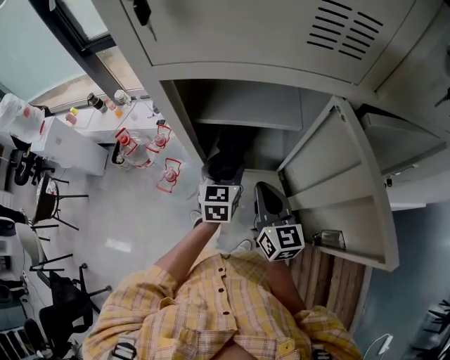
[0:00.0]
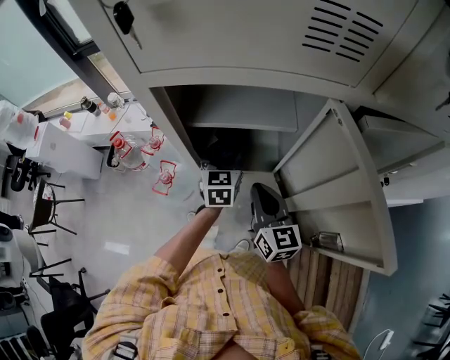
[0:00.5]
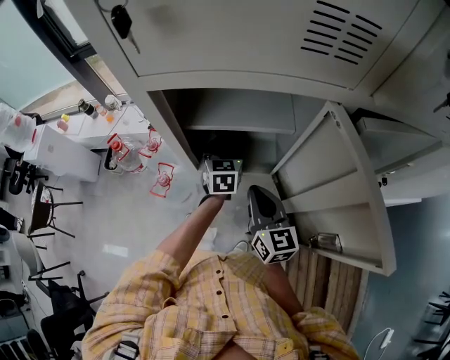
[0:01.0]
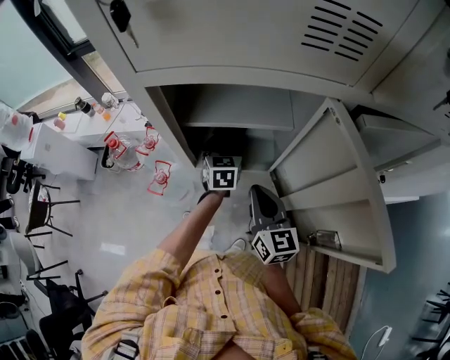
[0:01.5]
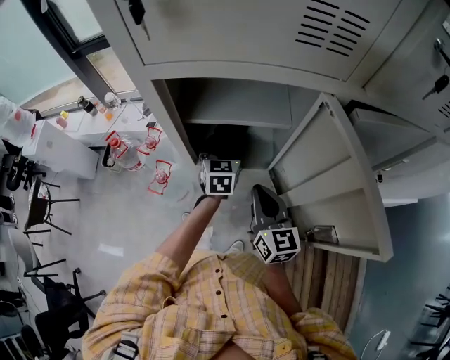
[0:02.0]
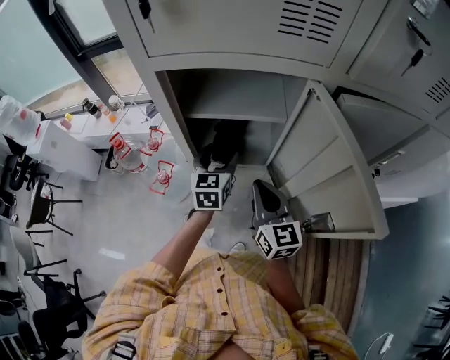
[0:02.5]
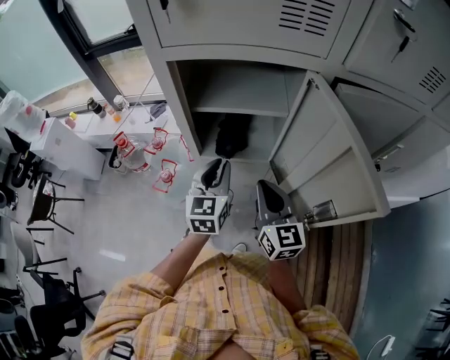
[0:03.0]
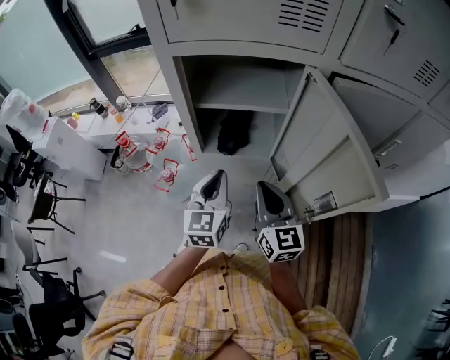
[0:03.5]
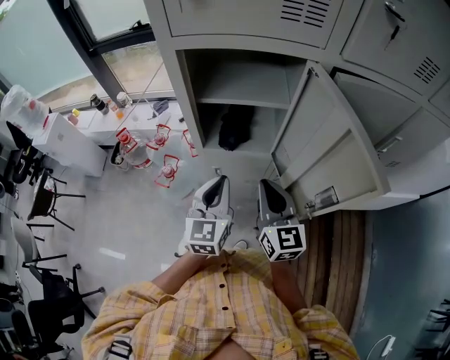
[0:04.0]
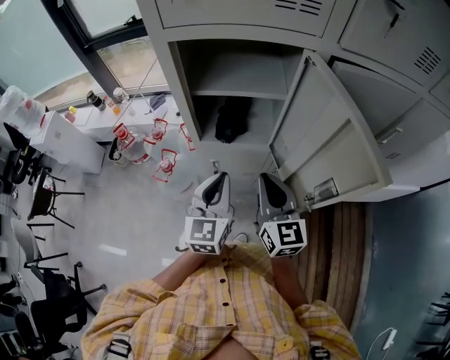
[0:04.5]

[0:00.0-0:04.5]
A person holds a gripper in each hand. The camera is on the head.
0:00.0 to 0:02.0: The left gripper travels forward by some 5 cm.
0:02.0 to 0:04.5: The right gripper heads backward, covering roughly 5 cm, while the left gripper shifts about 25 cm backward, and closes up.

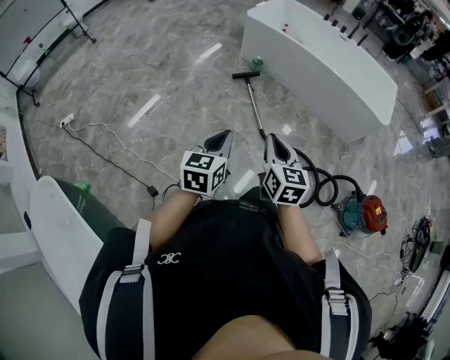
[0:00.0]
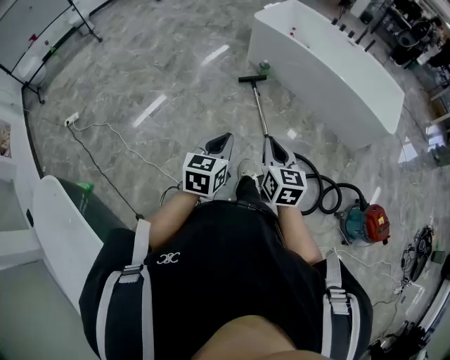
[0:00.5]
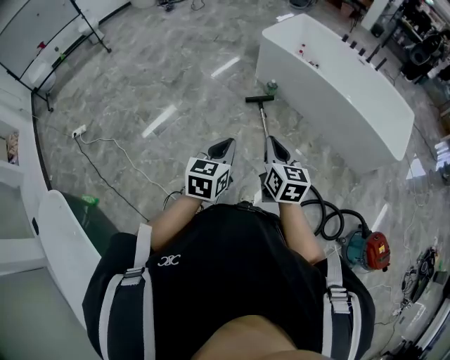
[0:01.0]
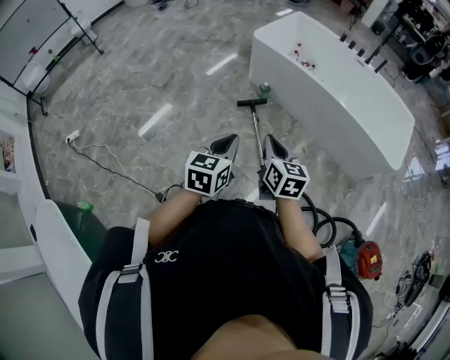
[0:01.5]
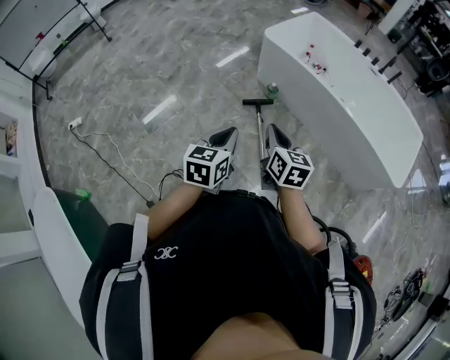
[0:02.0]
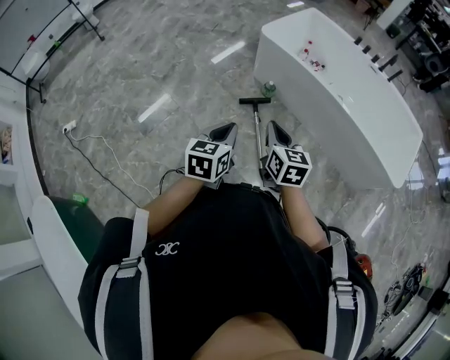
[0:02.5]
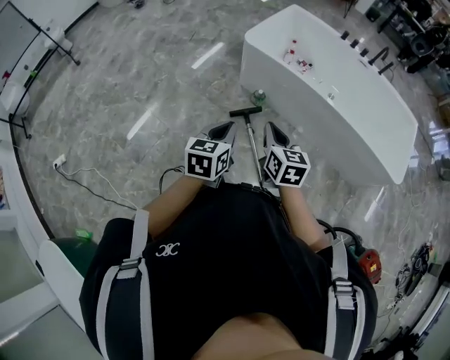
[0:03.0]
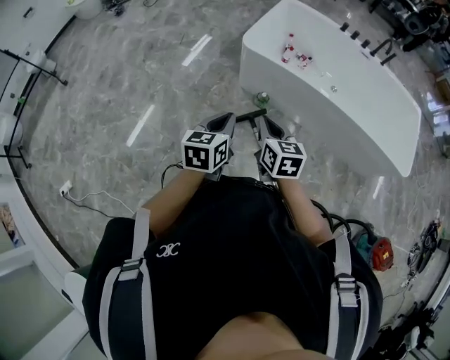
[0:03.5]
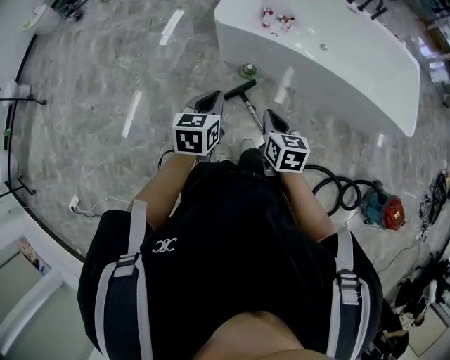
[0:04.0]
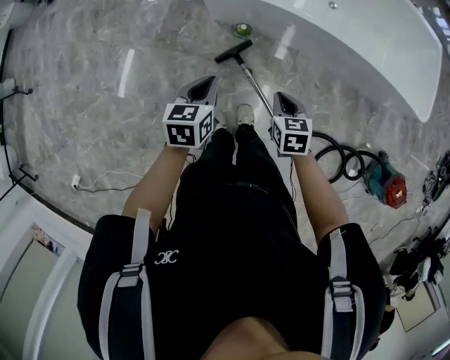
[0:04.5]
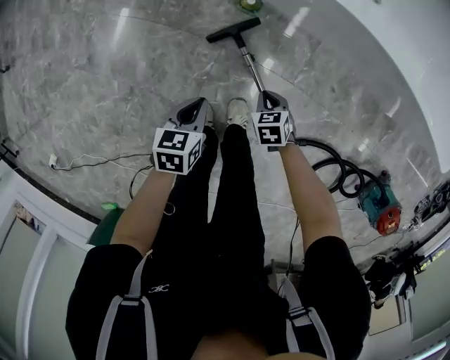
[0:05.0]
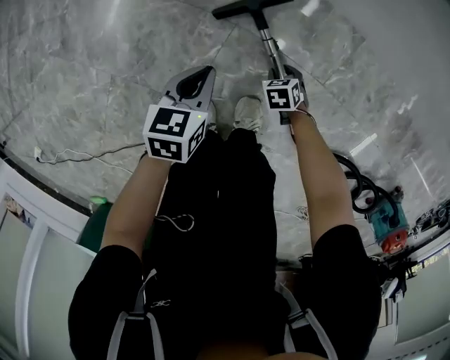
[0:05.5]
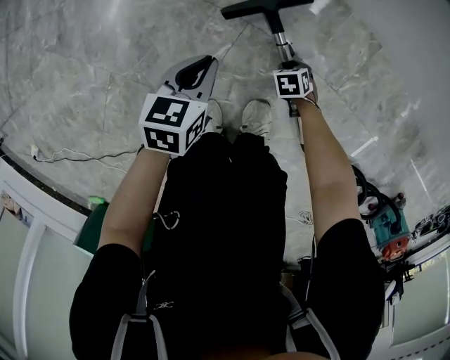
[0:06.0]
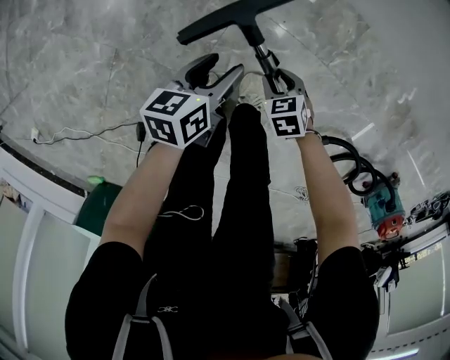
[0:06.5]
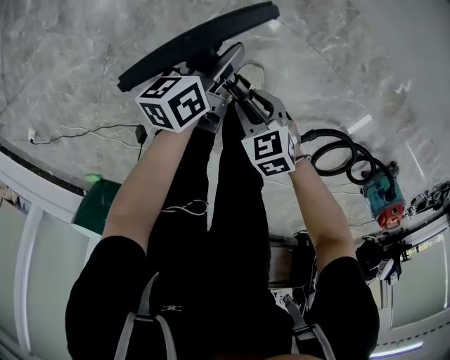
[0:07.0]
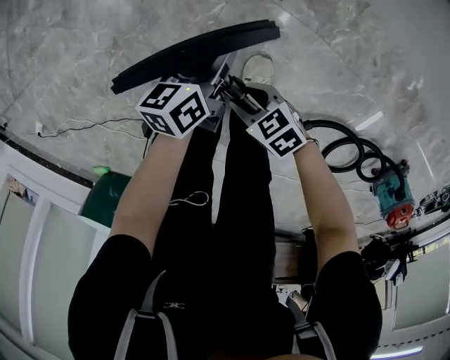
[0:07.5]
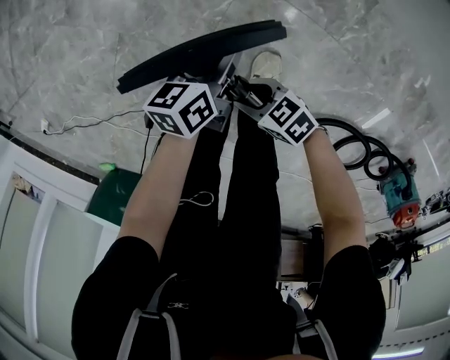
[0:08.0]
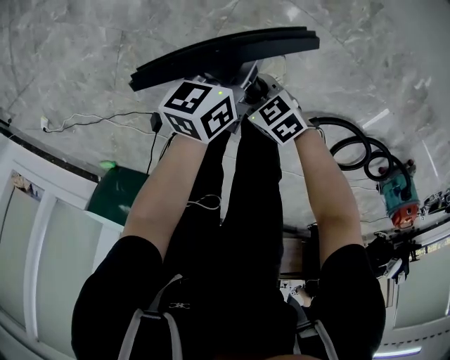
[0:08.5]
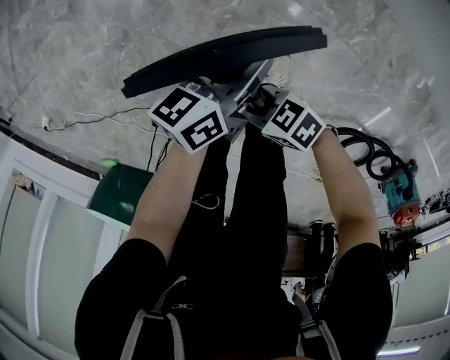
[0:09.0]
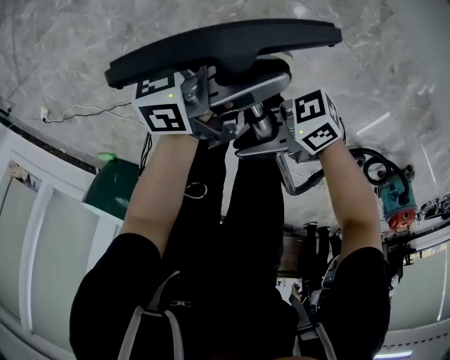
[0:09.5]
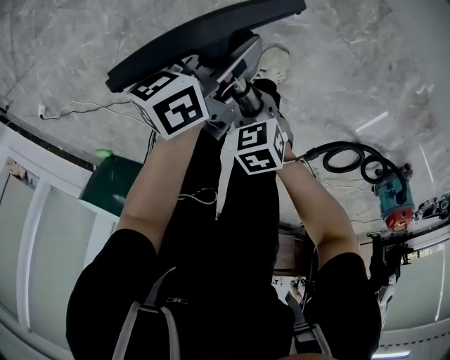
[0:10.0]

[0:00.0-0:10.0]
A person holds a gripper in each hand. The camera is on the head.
0:00.0 to 0:02.0: Both grippers travel together forward, some 35 cm.
0:02.0 to 0:04.0: The two grippers go some 40 cm forward. The left gripper swivels approximately 20 degrees. The right gripper changes its angle by about 30 degrees.
0:04.0 to 0:06.0: The two grippers go some 80 cm downward. The left gripper swivels some 20 degrees. Meanwhile the right gripper points its fingers approximately 50 degrees further downward, and opens up.
0:06.0 to 0:08.0: The right gripper travels upward by roughly 30 cm, and tips its fingers upward by some 50 degrees. Meanwhile the left gripper travels upward by about 10 cm, swivels some 30 degrees, and opens and closes again.
0:08.0 to 0:10.0: The right gripper goes upward and returns, roughly 15 cm each way, swivels roughly 30 degrees, and closes. The left gripper heads upward, covering roughly 5 cm.

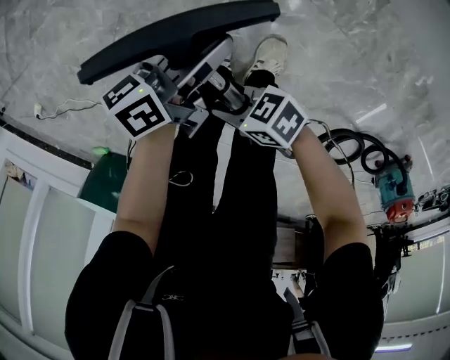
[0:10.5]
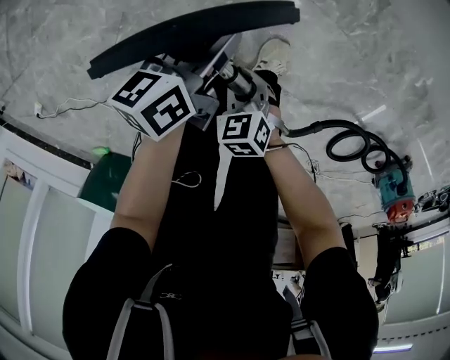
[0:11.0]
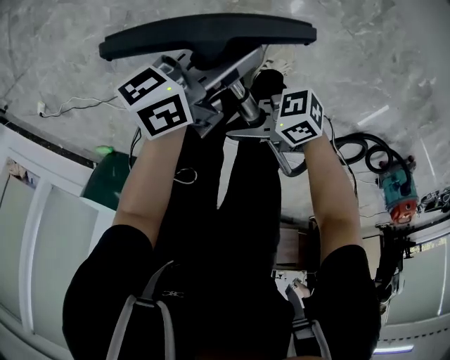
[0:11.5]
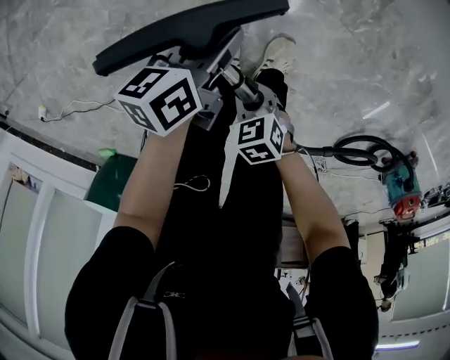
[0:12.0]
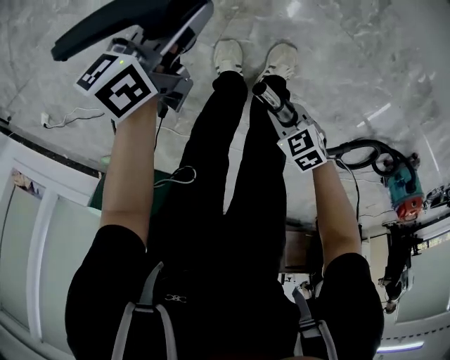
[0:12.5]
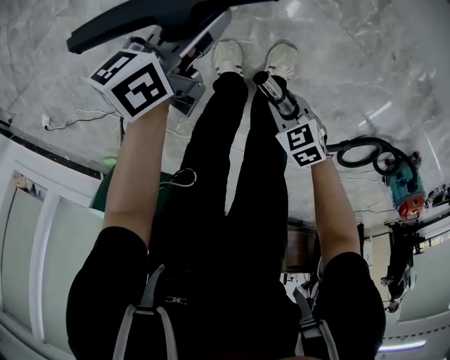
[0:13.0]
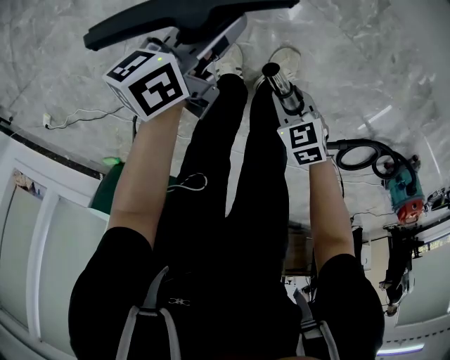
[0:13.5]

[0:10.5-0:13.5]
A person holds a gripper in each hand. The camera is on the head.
0:10.5 to 0:12.0: The right gripper moves up and down over roughly 10 cm, changing direction 2 times, and points its fingers approximately 40 degrees further downward.
0:12.0 to 0:13.5: The right gripper ends up roughly 10 cm from where it was.

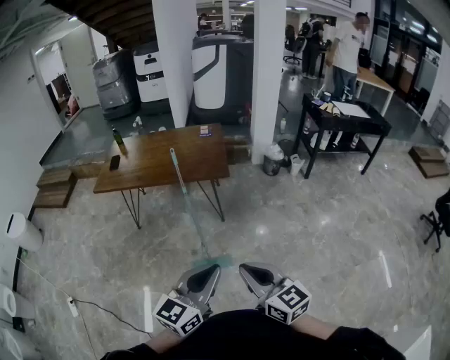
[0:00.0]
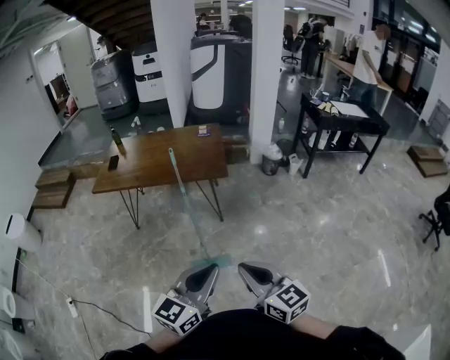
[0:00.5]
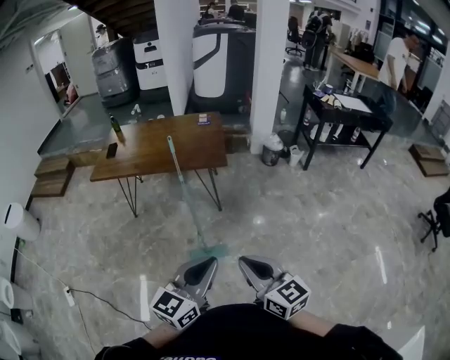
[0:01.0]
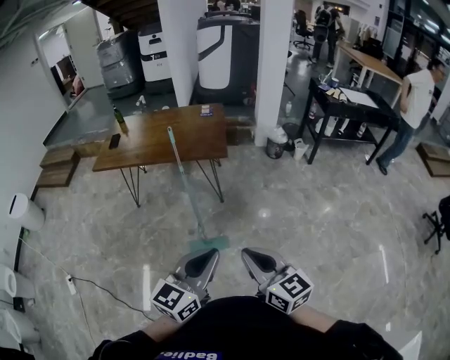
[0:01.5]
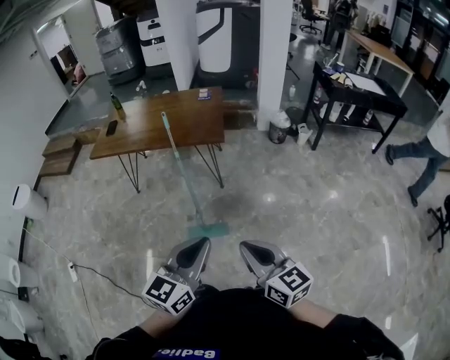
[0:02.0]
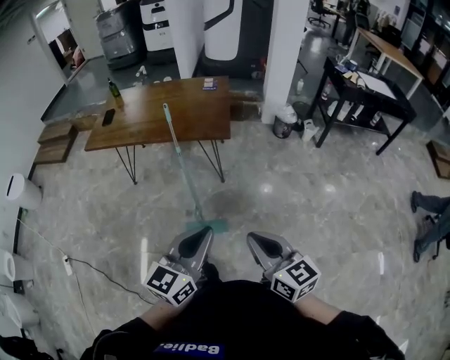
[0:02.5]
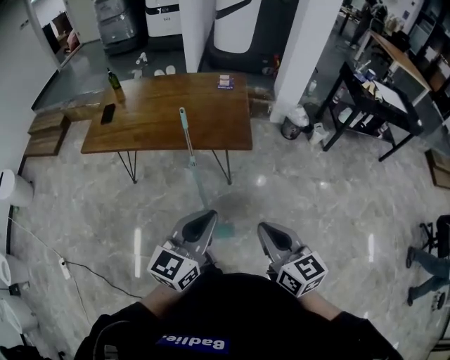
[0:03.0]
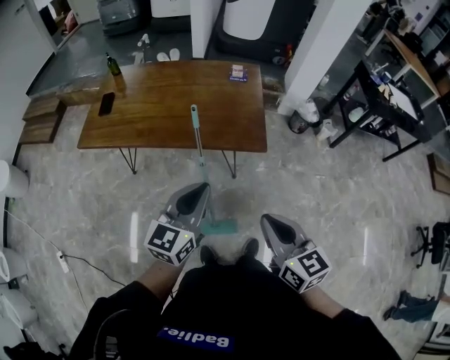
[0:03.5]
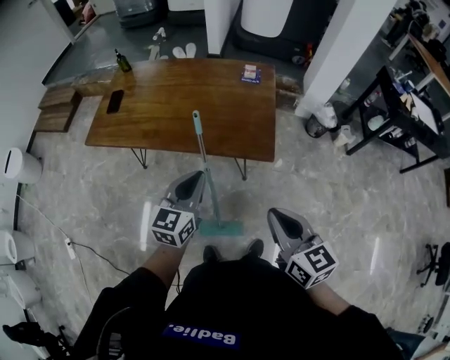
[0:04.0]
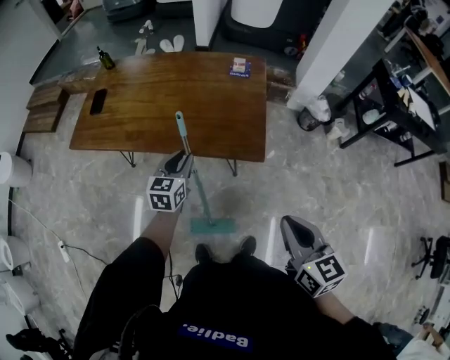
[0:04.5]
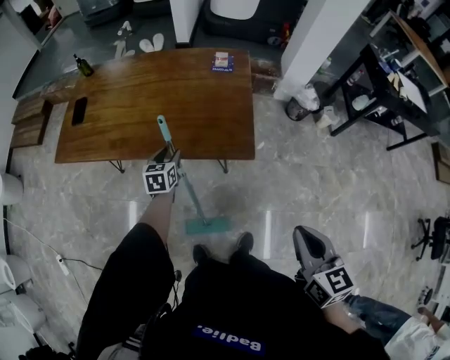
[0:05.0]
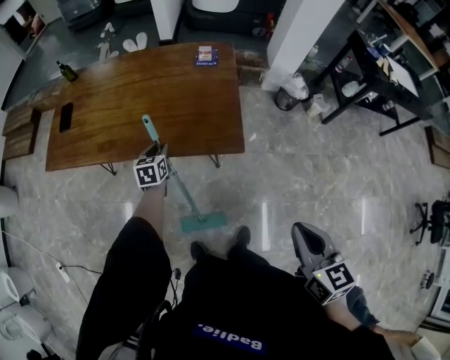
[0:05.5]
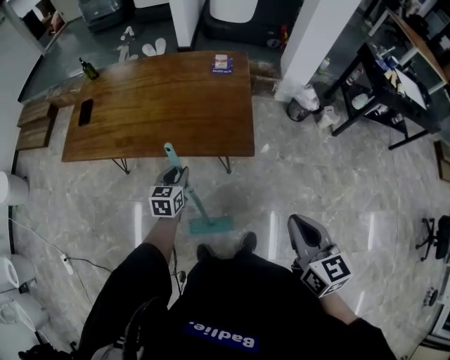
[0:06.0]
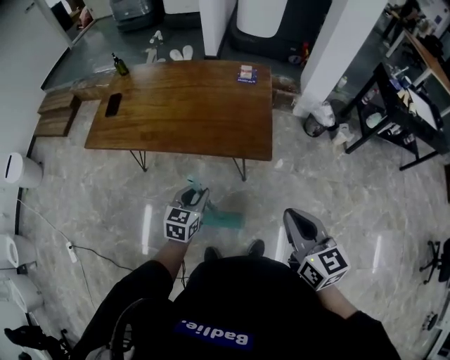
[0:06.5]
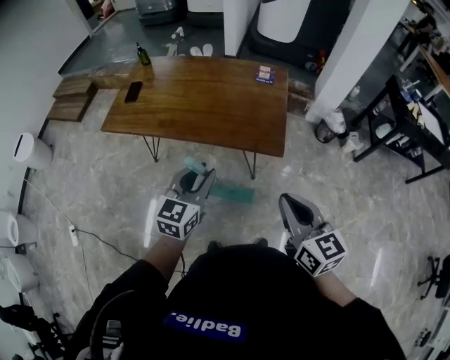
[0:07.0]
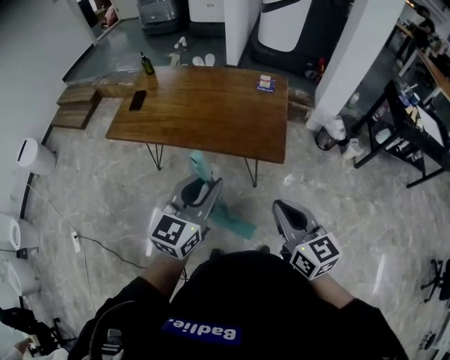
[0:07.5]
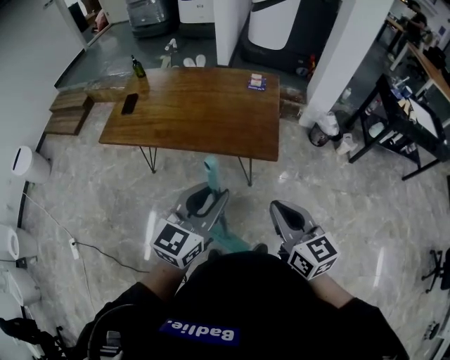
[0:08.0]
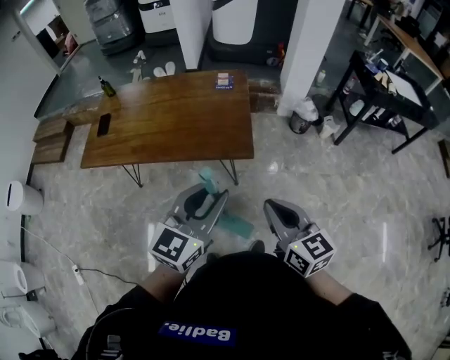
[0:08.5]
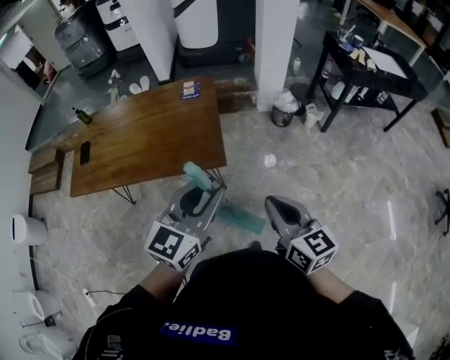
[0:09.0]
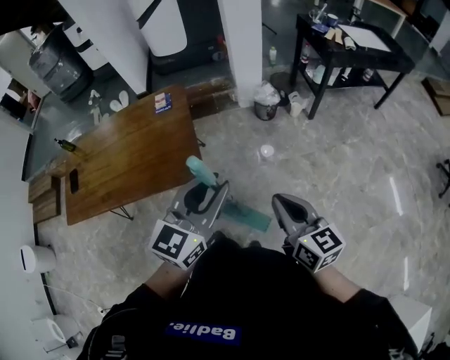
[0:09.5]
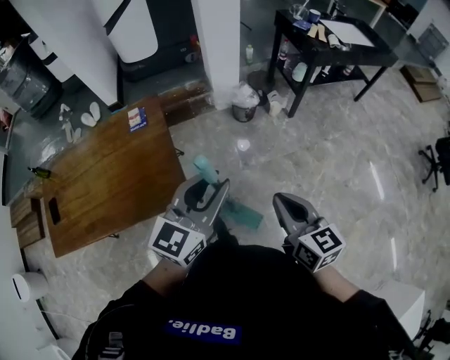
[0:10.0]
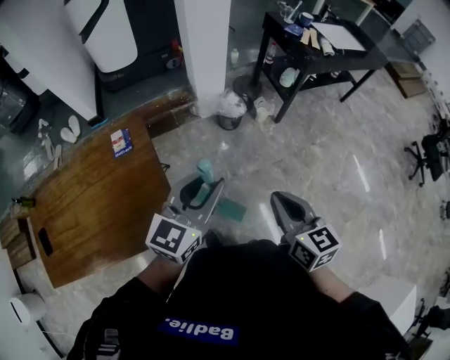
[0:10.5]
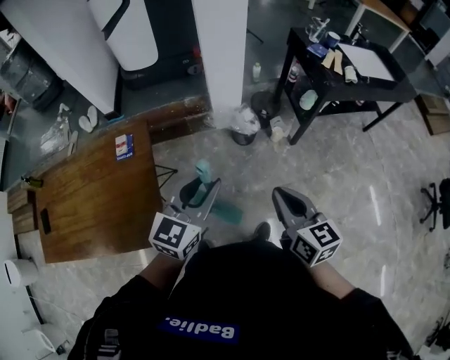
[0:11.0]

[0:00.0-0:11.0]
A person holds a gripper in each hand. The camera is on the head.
0:00.0 to 0:02.0: Both grippers move to the right, approximately 10 cm.
0:02.0 to 0:03.5: The grippers both shift forward and to the left by about 40 cm.
0:03.5 to 0:05.5: The right gripper heads to the right, covering approximately 15 cm. The left gripper moves forward and downward, about 40 cm, tips its fingers downward by approximately 30 degrees, and opens up.
0:05.5 to 0:07.5: The right gripper moves to the left and upward, some 15 cm, and rotates roughly 30 degrees, while the left gripper is displaced upward and backward by roughly 40 cm, and tilts its fingers approximately 30 degrees upward.
0:07.5 to 0:09.0: Both grippers travel together to the right, some 20 cm. The left gripper turns by about 20 degrees.
0:09.0 to 0:11.0: The two grippers travel together, forward and to the right, about 40 cm.
